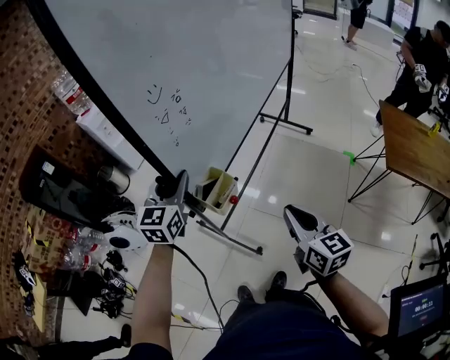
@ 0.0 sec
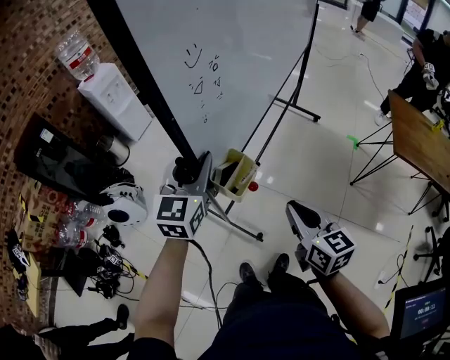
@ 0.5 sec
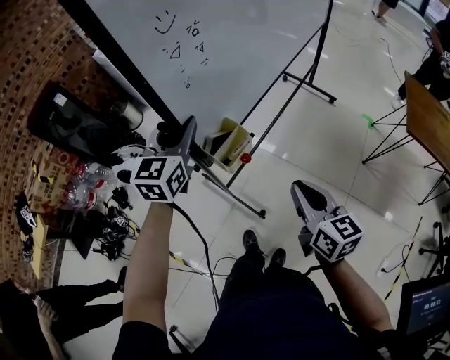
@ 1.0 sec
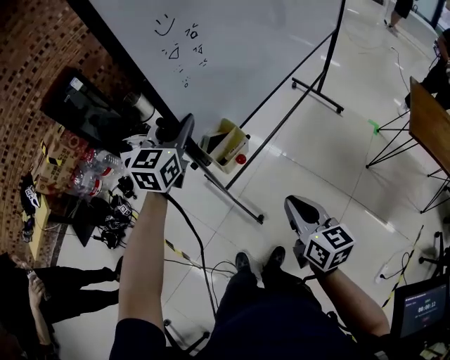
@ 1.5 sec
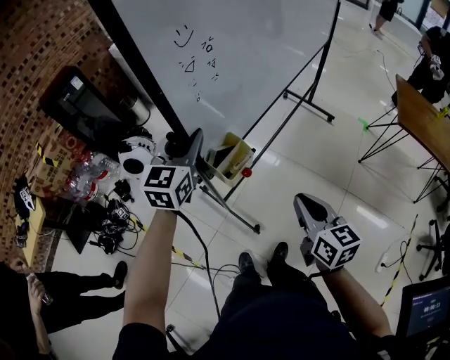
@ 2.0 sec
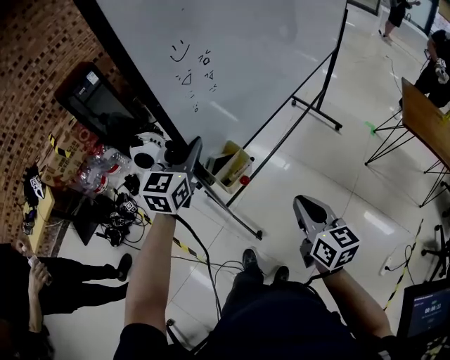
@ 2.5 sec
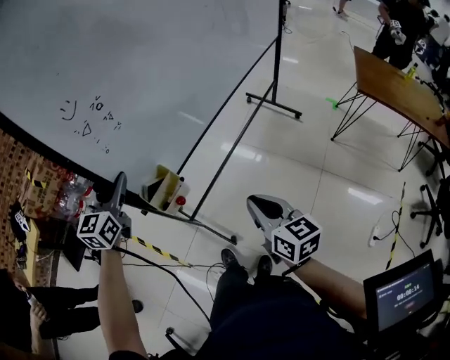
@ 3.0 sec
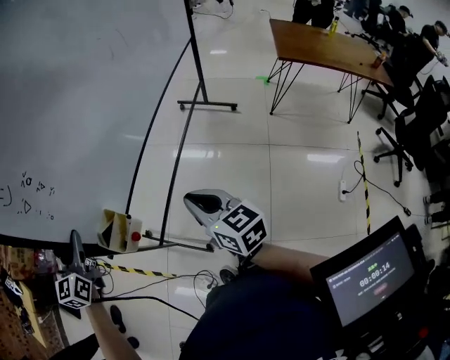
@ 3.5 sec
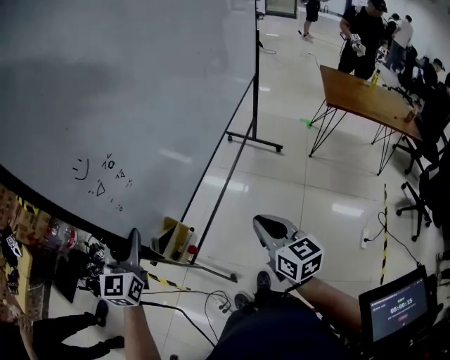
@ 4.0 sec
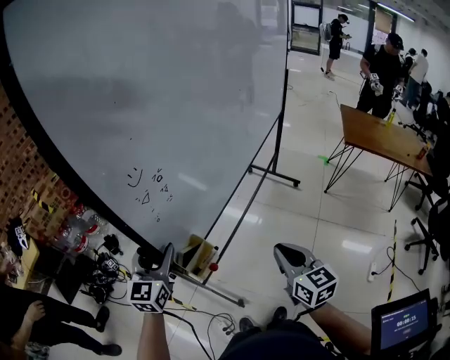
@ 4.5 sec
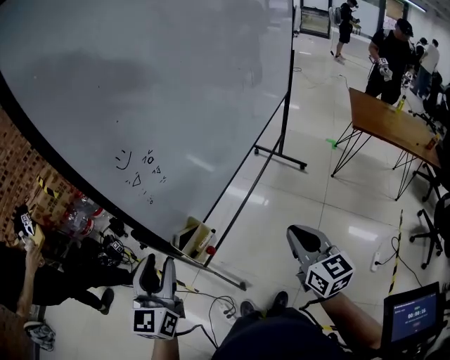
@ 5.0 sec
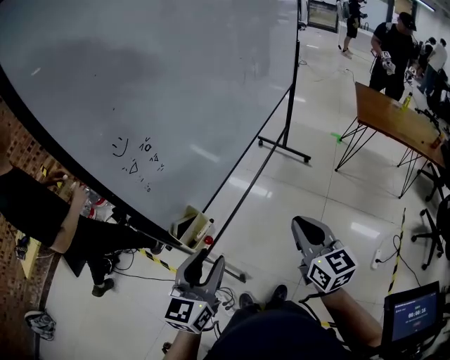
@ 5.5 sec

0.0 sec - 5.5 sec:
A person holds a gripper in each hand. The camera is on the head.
0.0 sec - 2.0 sec: The grippers both shift backward and to the left by approximately 25 cm.
2.0 sec - 3.5 sec: The left gripper is displaced backward by roughly 25 cm. The right gripper shifts about 15 cm backward.
3.5 sec - 5.5 sec: The right gripper travels upward and to the right by about 10 cm; the left gripper shifts about 20 cm to the right and backward.

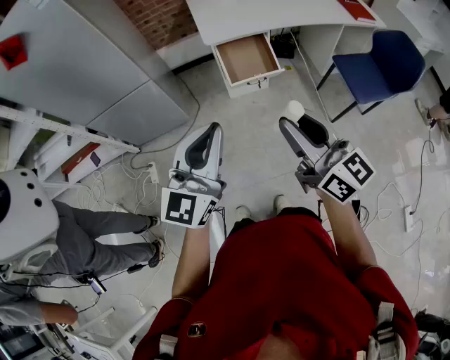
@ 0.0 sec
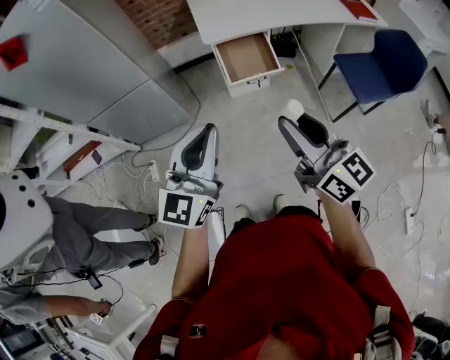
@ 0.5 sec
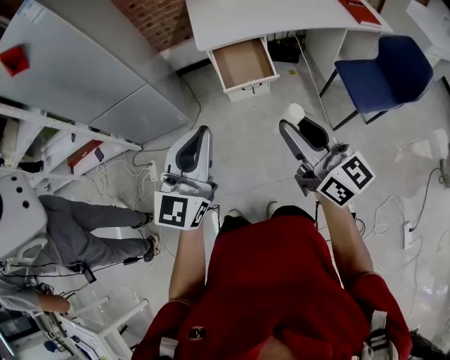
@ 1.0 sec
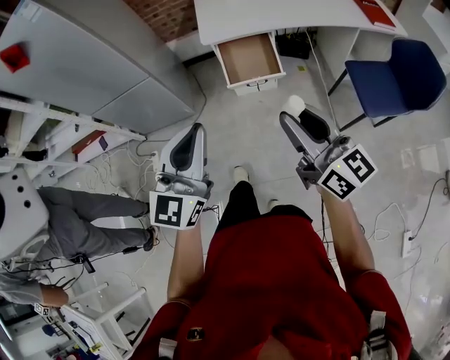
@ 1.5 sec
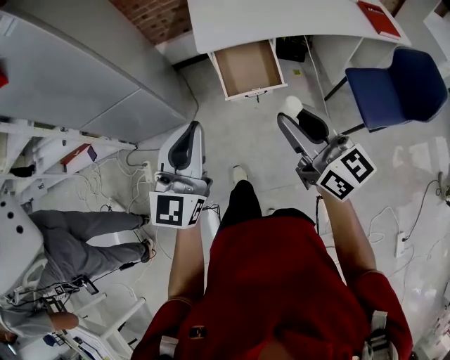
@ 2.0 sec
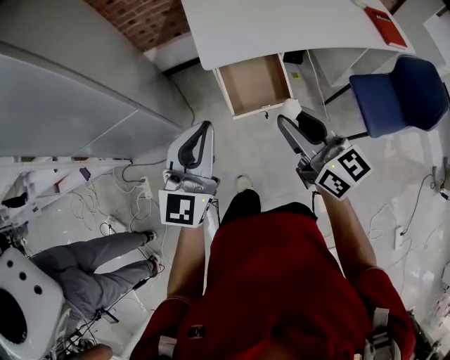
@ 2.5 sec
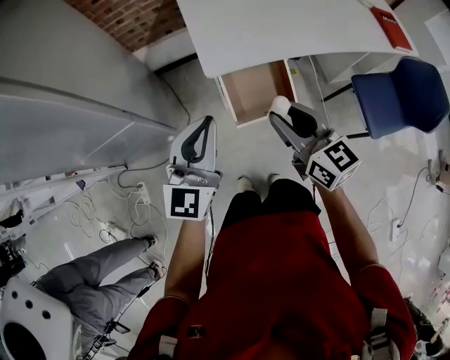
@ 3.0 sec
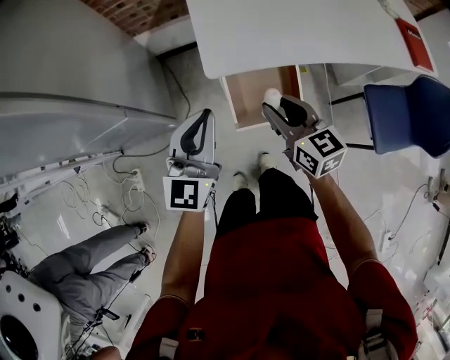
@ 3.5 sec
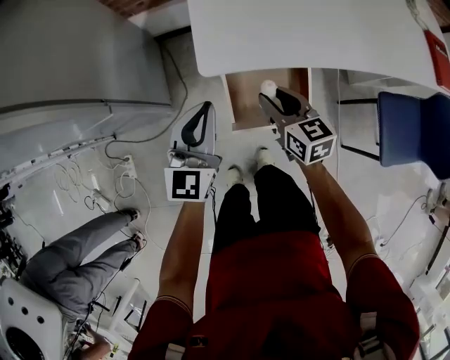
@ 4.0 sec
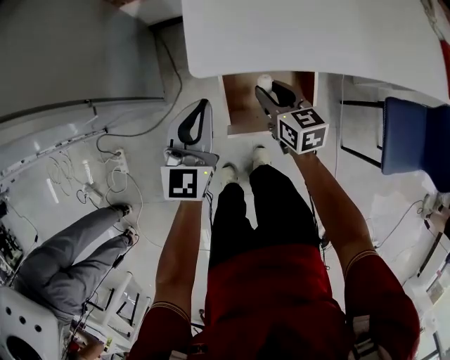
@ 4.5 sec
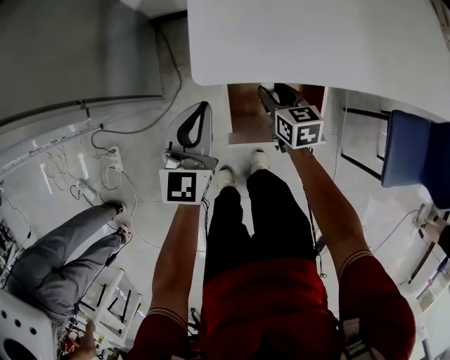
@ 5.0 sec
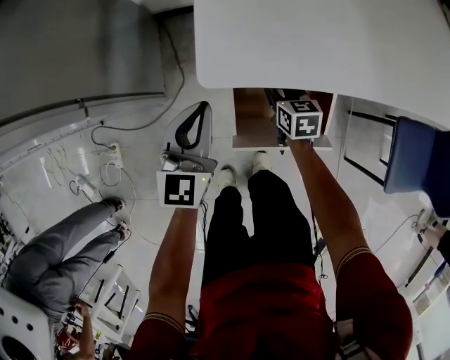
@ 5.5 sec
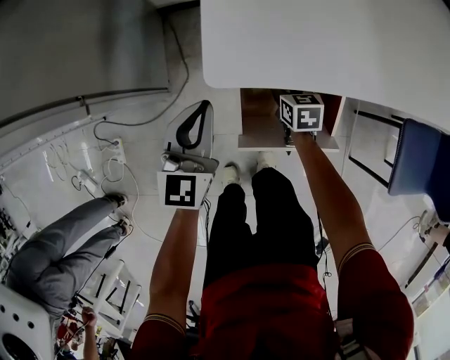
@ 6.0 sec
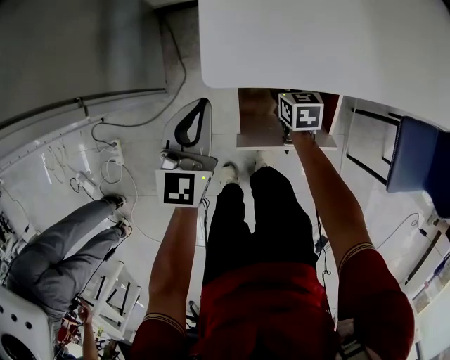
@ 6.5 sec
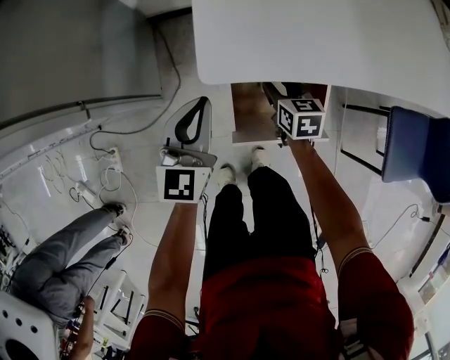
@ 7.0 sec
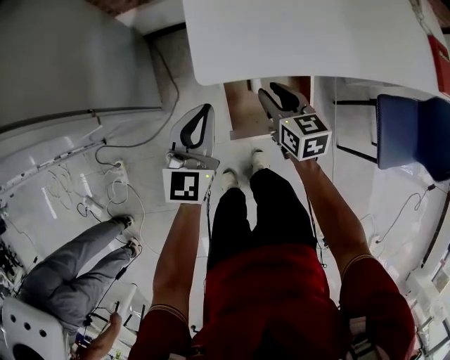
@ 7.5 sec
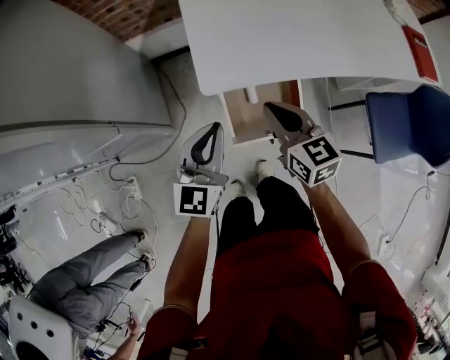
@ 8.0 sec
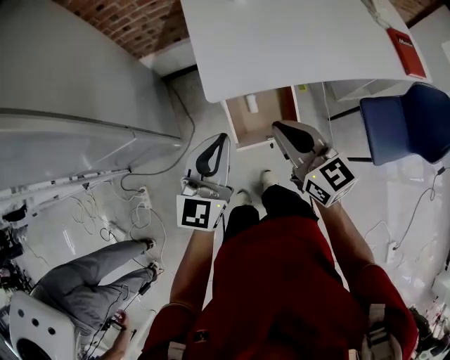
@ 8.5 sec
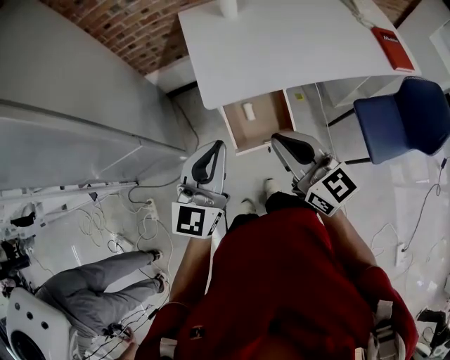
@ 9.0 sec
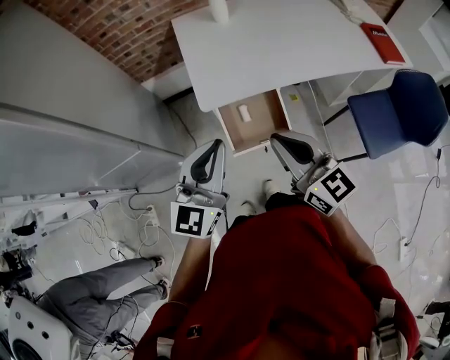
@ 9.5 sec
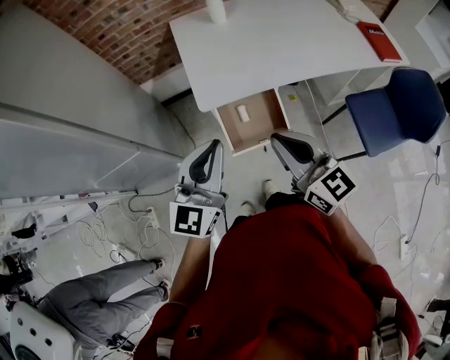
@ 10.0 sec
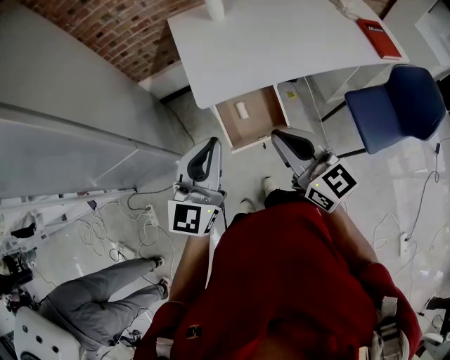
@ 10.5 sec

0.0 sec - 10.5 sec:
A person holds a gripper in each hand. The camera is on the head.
0.0 sec - 2.0 sec: The left gripper moves forward, roughly 15 cm; the right gripper shifts roughly 20 cm forward and to the right.
2.0 sec - 4.0 sec: Both grippers move forward and downward, about 50 cm. The right gripper rotates approximately 30 degrees.
4.0 sec - 6.5 sec: The right gripper goes about 25 cm downward and forward, and turns by approximately 20 degrees. Meanwhile the left gripper is displaced downward and forward by approximately 15 cm.
6.5 sec - 8.5 sec: The right gripper goes about 50 cm upward and backward, tips its fingers upward by roughly 40 degrees, and closes its fingers. Meanwhile the left gripper moves upward and backward, approximately 30 cm.
8.5 sec - 10.5 sec: Both grippers travel together backward and upward, about 10 cm.

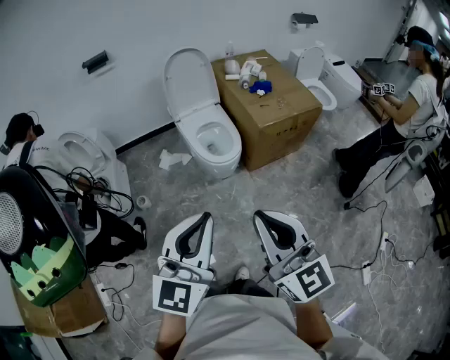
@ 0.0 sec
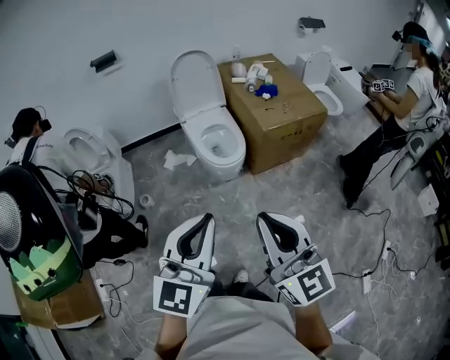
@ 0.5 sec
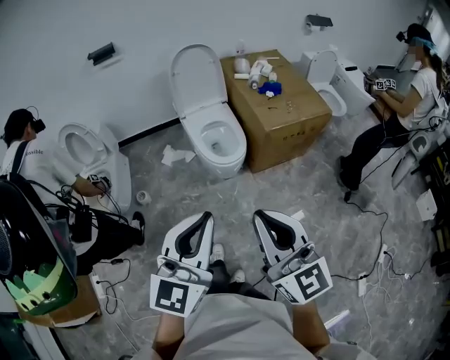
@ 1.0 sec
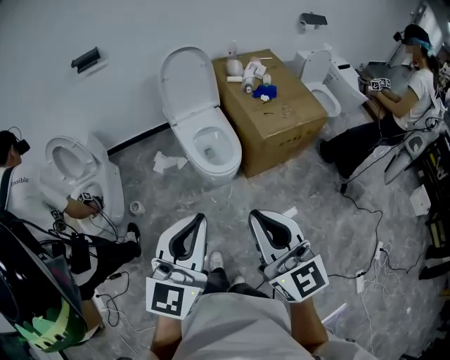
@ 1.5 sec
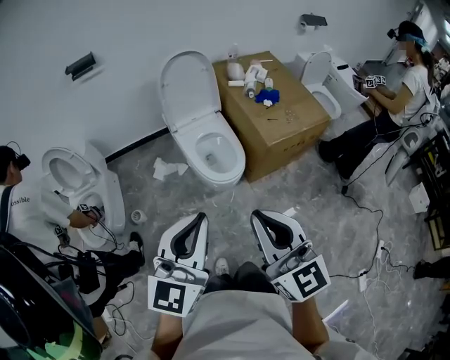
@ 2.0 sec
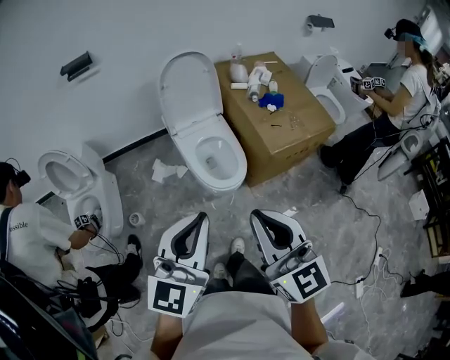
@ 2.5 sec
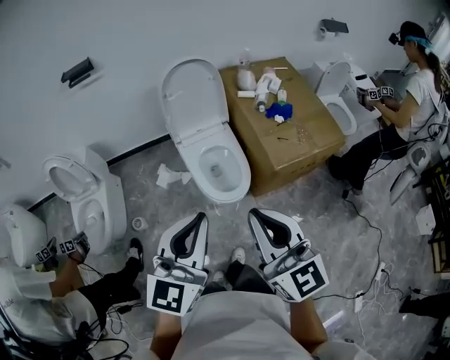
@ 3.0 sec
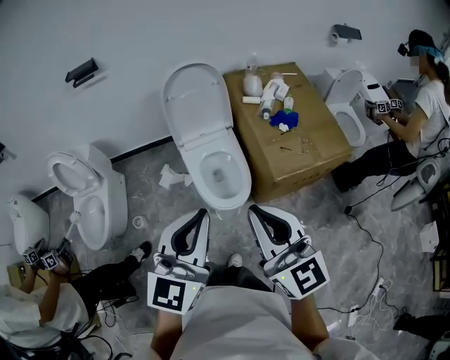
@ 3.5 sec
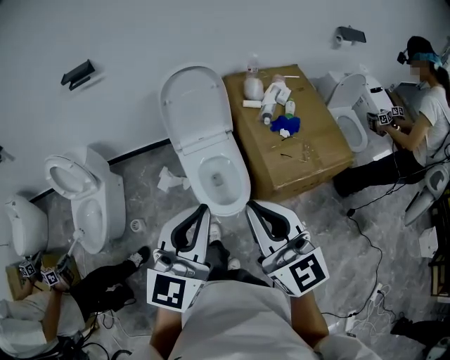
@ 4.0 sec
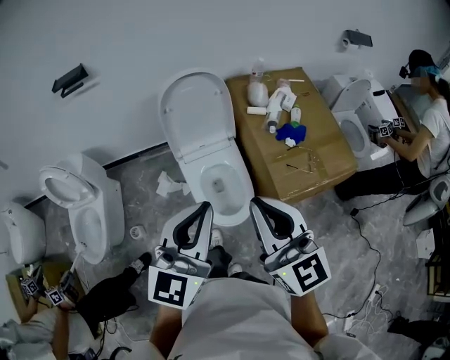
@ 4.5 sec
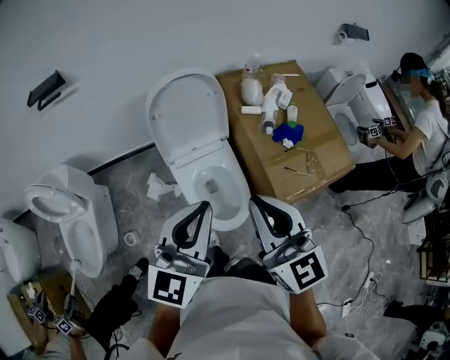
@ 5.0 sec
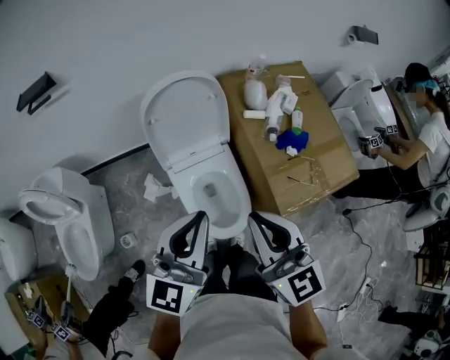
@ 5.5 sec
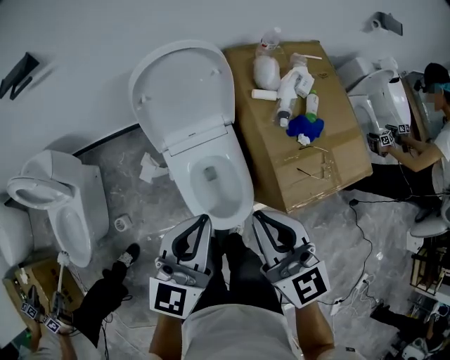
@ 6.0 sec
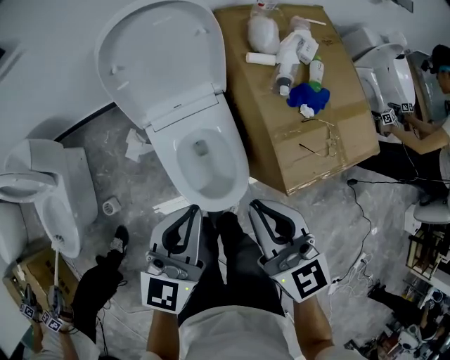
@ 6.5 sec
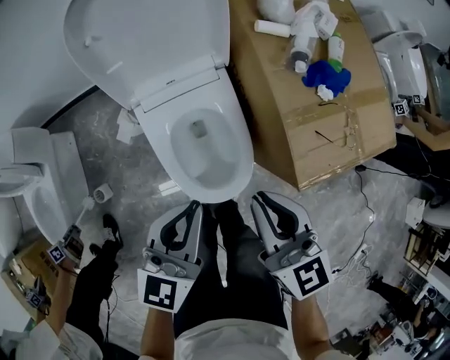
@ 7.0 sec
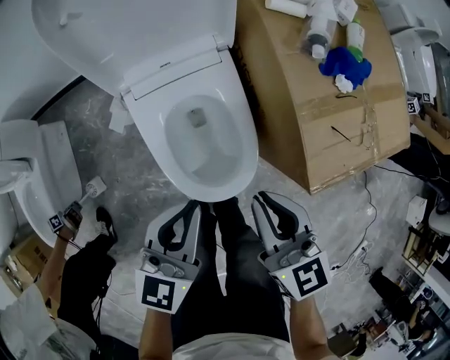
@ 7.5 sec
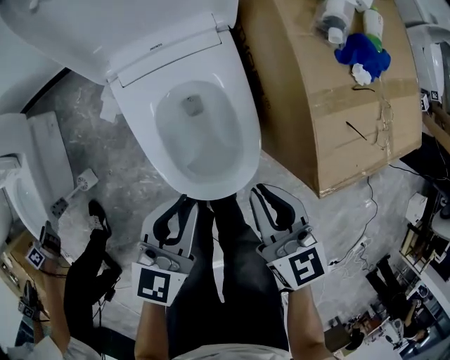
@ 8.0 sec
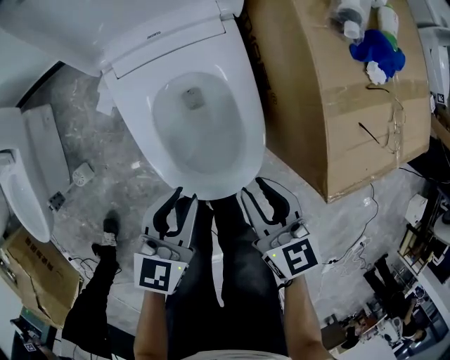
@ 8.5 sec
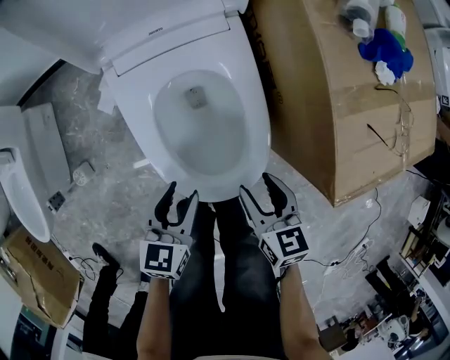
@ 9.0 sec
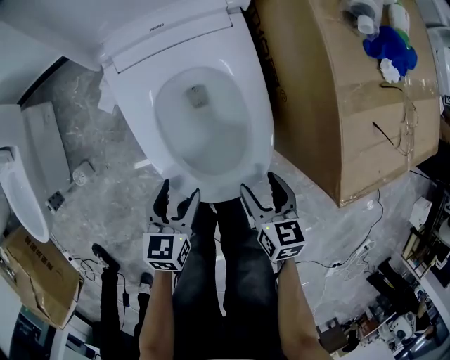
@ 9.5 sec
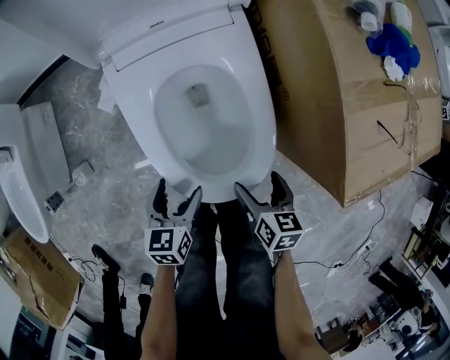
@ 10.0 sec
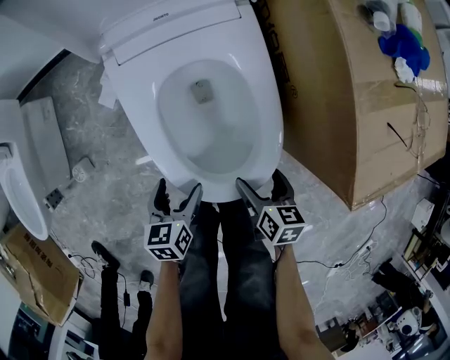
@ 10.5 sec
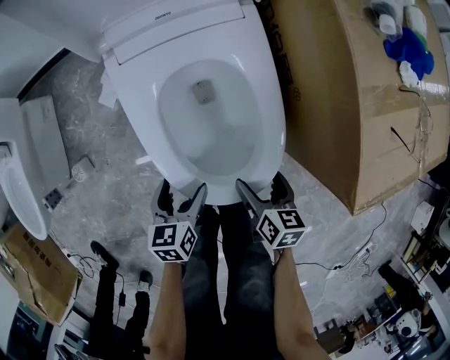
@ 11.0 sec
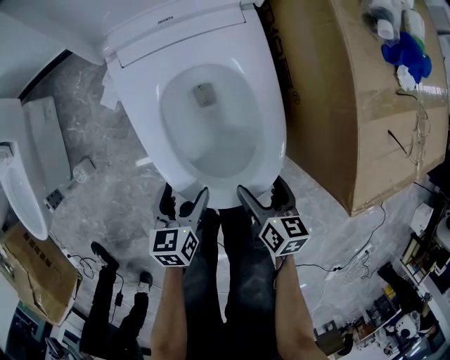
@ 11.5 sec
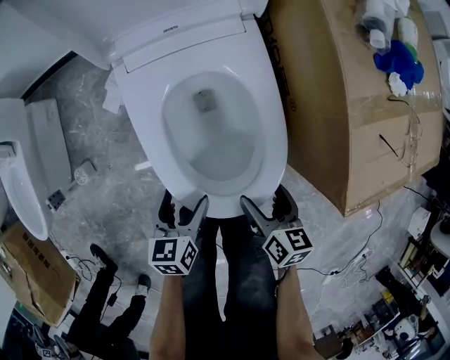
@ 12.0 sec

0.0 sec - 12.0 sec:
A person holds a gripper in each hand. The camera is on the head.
0.0 sec - 2.0 sec: Both grippers travel together forward, roughly 20 cm.
2.0 sec - 4.0 sec: The two grippers go about 25 cm forward and to the right.
4.0 sec - 6.0 sec: Both grippers move forward and downward, approximately 30 cm.
6.0 sec - 8.0 sec: The two grippers go some 35 cm downward. The left gripper turns by roughly 20 degrees. The right gripper rotates some 20 degrees.
8.0 sec - 10.0 sec: Both grippers travel together downward, about 25 cm. The left gripper turns by approximately 20 degrees, and opens its fingers, while the right gripper rotates roughly 30 degrees, and opens its fingers.
10.0 sec - 12.0 sec: The grippers make only small movements.
